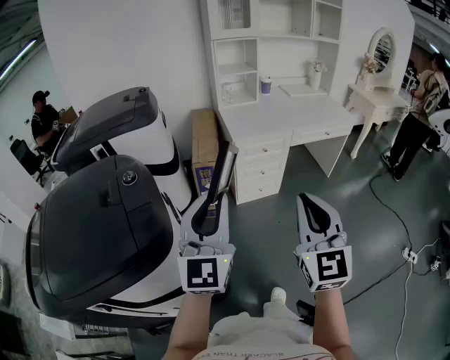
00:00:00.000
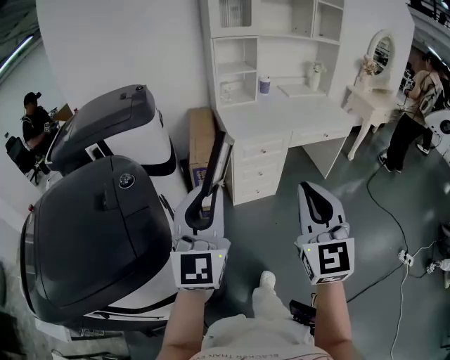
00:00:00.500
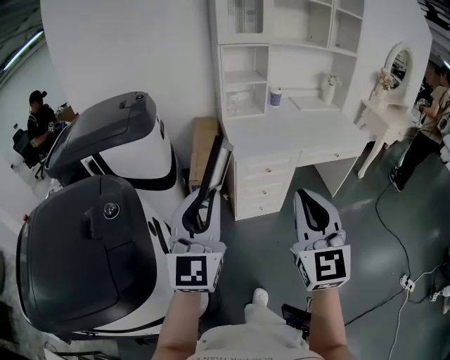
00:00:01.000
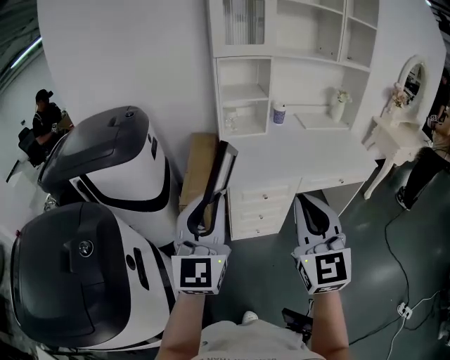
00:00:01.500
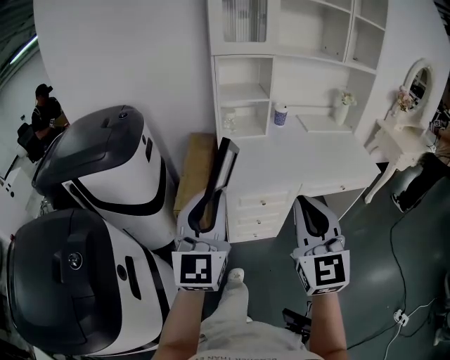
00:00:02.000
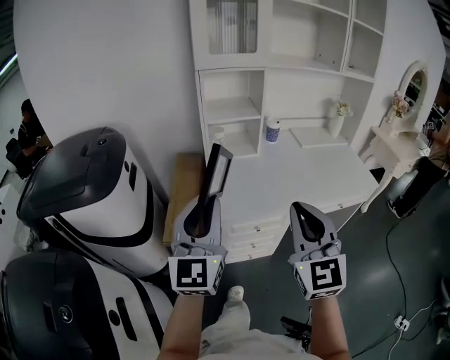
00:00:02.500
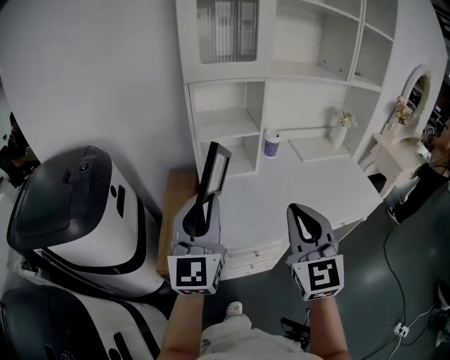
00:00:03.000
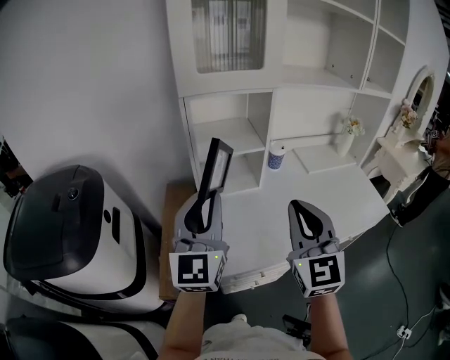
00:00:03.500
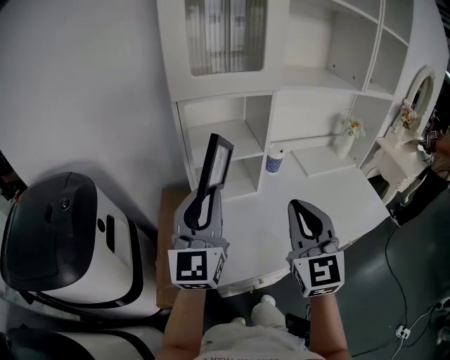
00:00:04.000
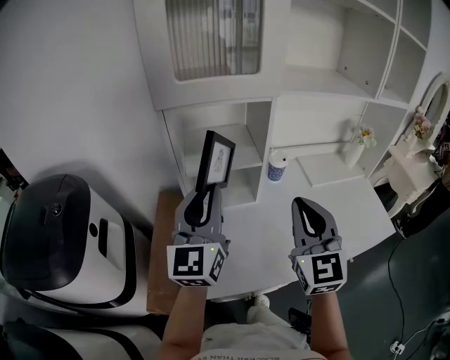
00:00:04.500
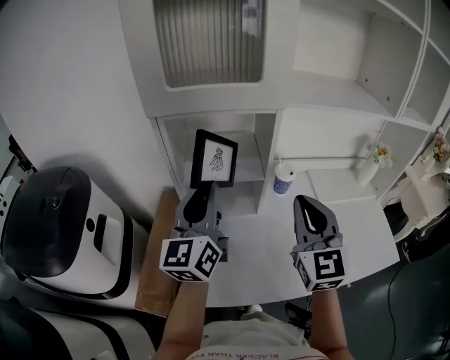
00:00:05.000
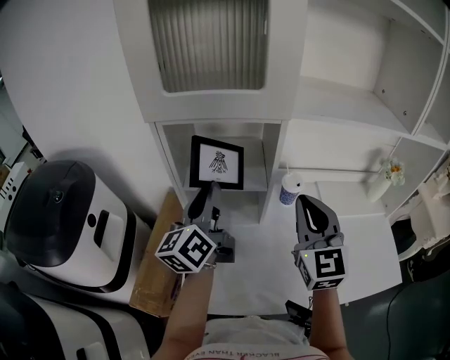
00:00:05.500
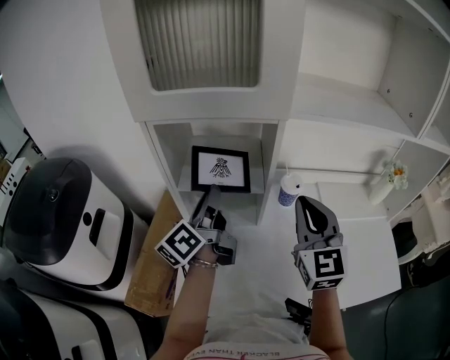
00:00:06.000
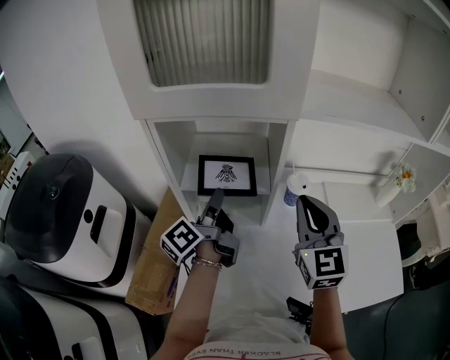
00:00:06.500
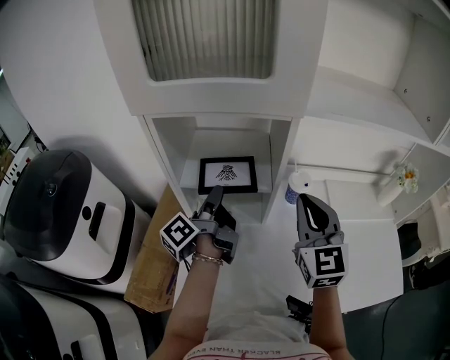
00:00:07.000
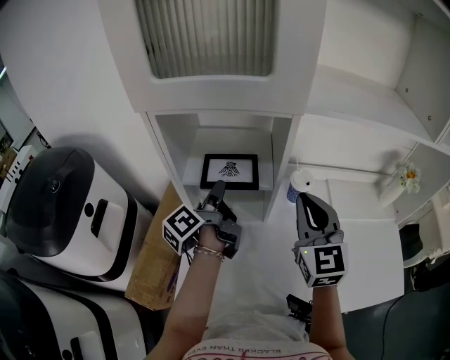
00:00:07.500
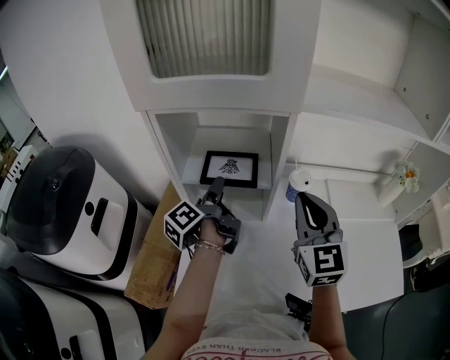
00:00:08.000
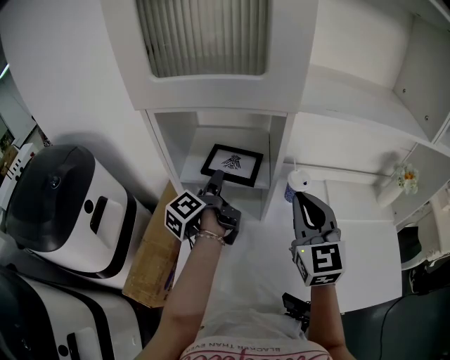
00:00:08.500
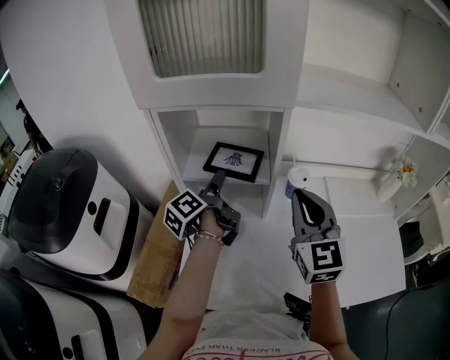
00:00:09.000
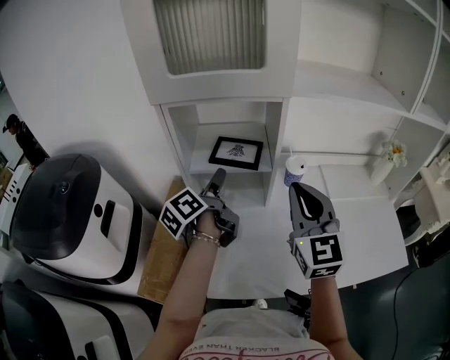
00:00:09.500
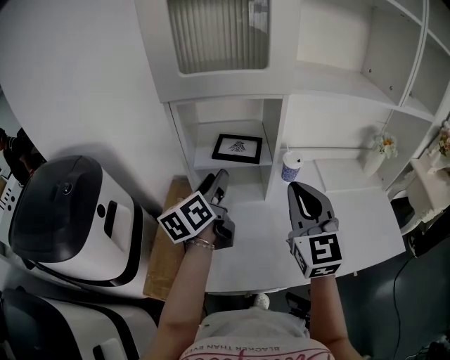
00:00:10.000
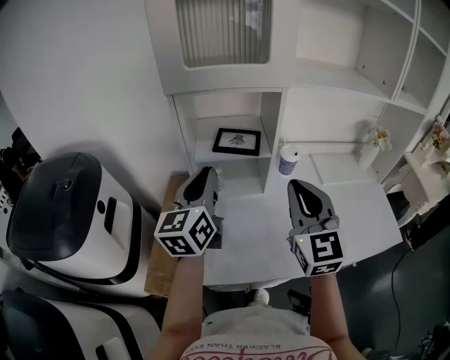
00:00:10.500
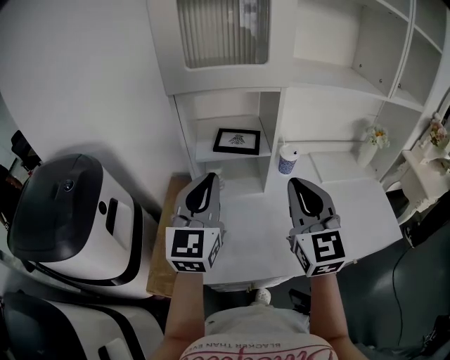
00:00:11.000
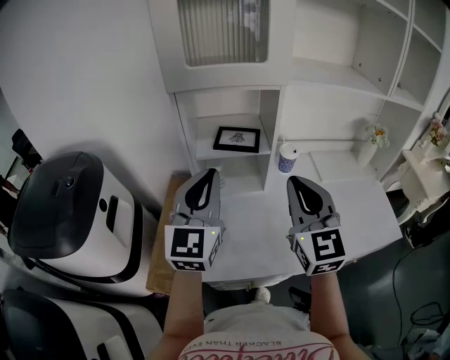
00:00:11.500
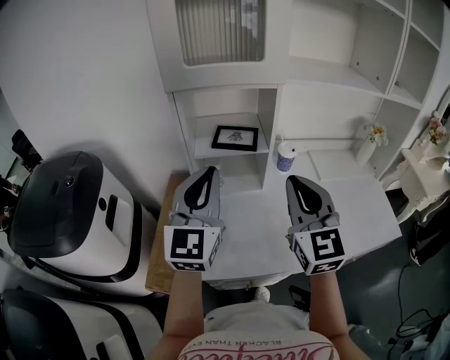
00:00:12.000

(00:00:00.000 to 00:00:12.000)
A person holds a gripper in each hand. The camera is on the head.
00:00:00.000 - 00:00:02.000: The grippers both shift forward by roughly 30 cm.
00:00:02.000 - 00:00:04.000: The grippers both shift forward by approximately 40 cm.
00:00:04.000 - 00:00:06.000: The left gripper goes approximately 20 cm forward and downward, and twists some 60 degrees counterclockwise, seen from behind, while the right gripper is displaced forward and to the right by about 25 cm.
00:00:06.000 - 00:00:08.000: The left gripper goes roughly 10 cm downward, swivels some 30 degrees, and opens its fingers.
00:00:08.000 - 00:00:10.000: The right gripper goes approximately 10 cm backward and to the left. The left gripper shifts about 10 cm backward and upward, and twists roughly 40 degrees clockwise, seen from behind.
00:00:10.000 - 00:00:12.000: The right gripper moves backward, approximately 5 cm, while the left gripper moves backward and upward, about 15 cm, twists some 50 degrees clockwise, seen from behind, and closes up.

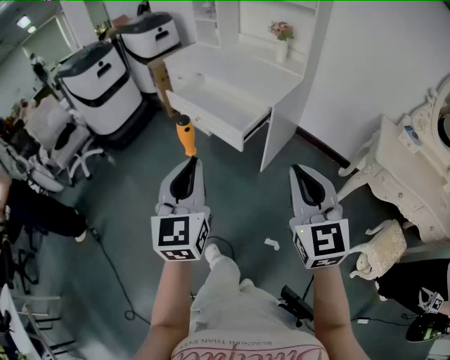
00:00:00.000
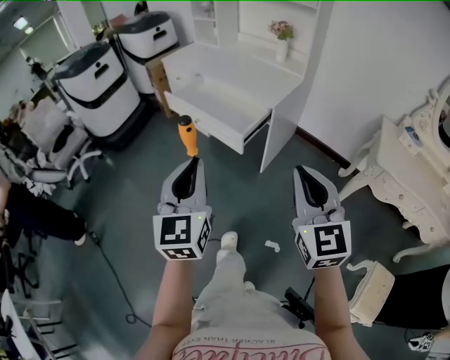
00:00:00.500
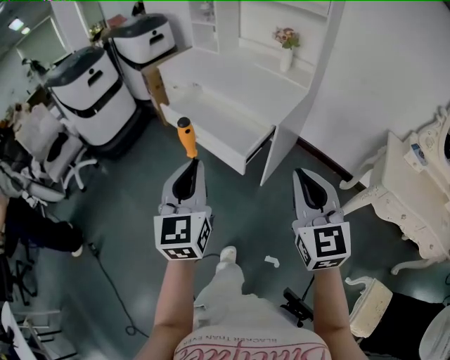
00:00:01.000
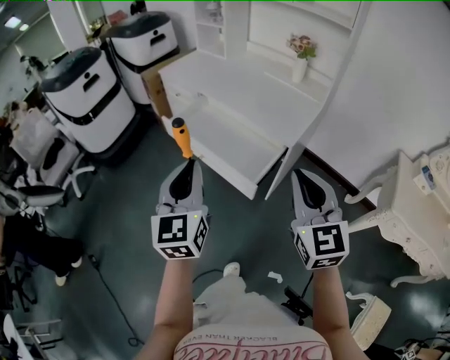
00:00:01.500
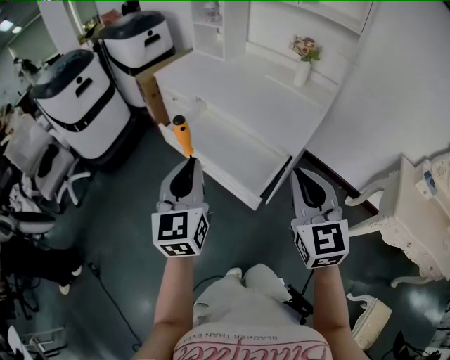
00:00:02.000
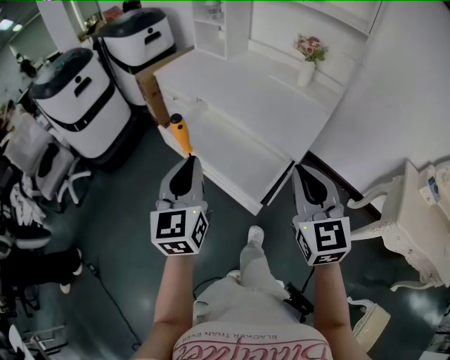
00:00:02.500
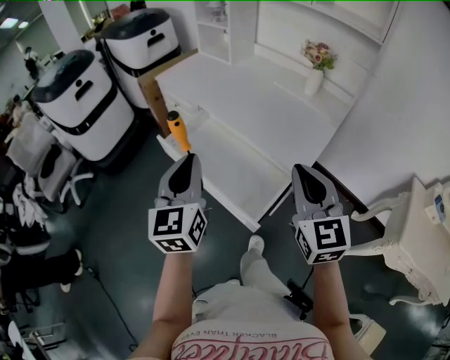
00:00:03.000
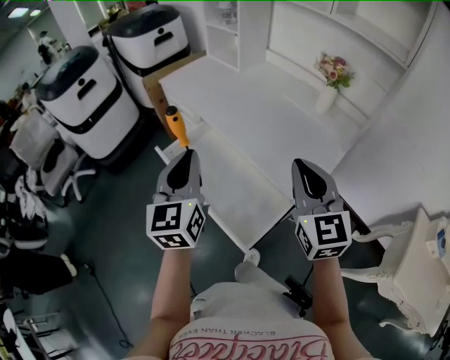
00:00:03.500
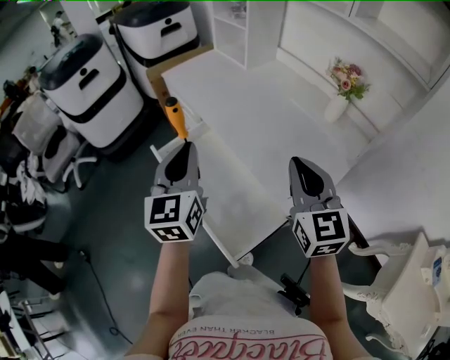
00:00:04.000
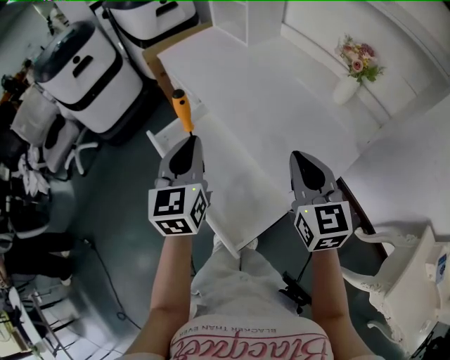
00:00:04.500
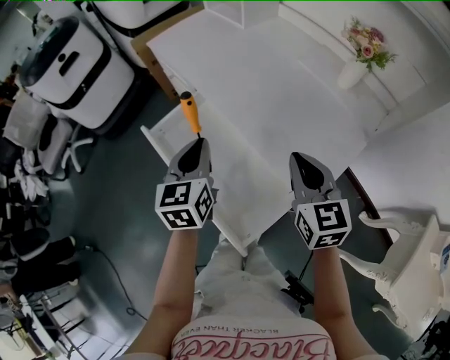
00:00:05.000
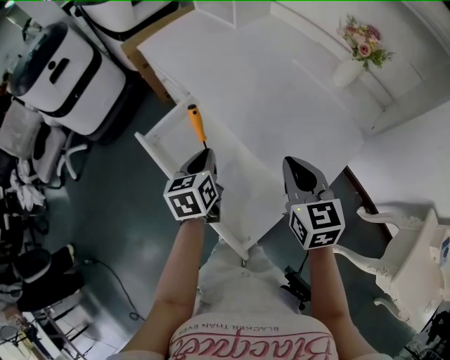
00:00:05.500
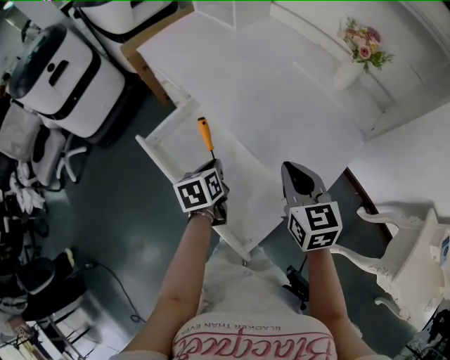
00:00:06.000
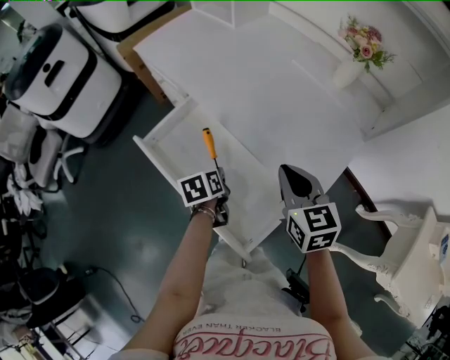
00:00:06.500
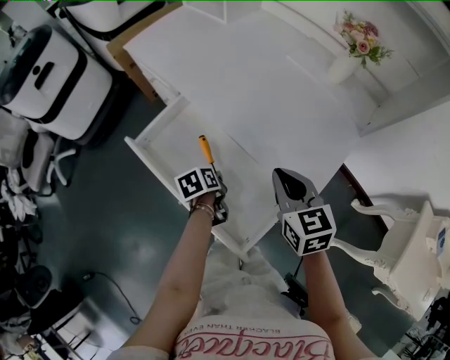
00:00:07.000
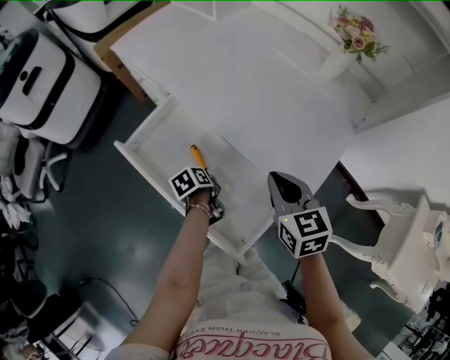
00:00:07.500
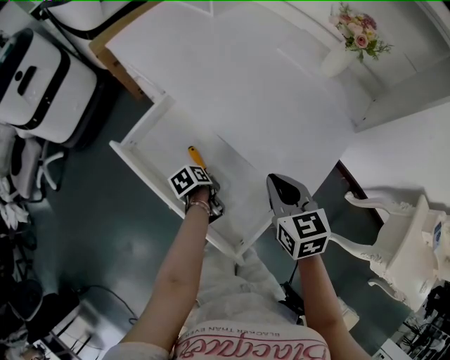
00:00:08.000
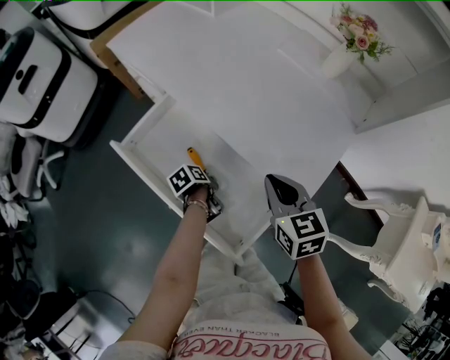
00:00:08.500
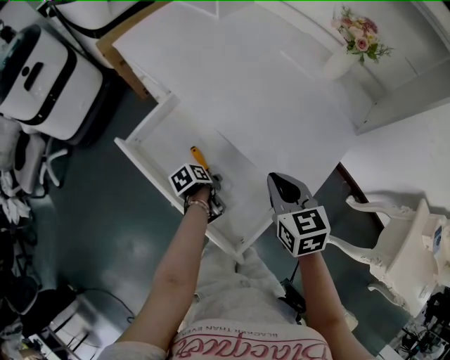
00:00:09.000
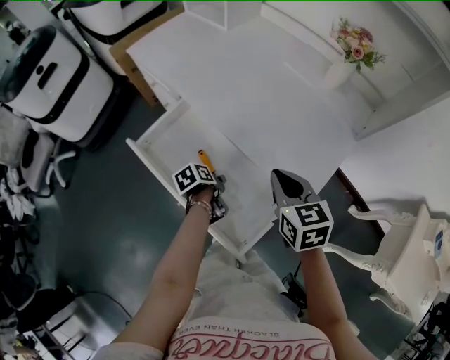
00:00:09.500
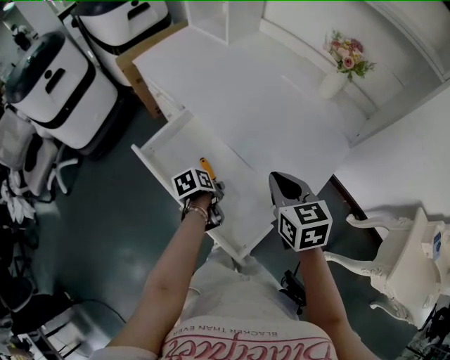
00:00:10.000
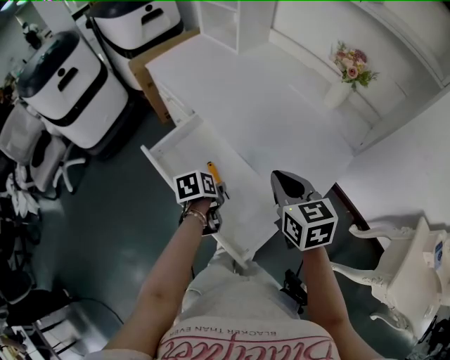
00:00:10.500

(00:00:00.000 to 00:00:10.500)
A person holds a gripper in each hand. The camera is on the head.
00:00:00.000 - 00:00:02.000: Both grippers move forward, approximately 35 cm.
00:00:02.000 - 00:00:04.000: Both grippers move forward, roughly 30 cm.
00:00:04.000 - 00:00:06.500: The right gripper shifts approximately 15 cm downward, and rotates approximately 20 degrees. The left gripper moves downward, roughly 30 cm, and points its fingers some 50 degrees further downward.
00:00:06.500 - 00:00:08.500: The left gripper moves downward, roughly 10 cm, and changes its angle by some 30 degrees.
00:00:08.500 - 00:00:10.500: The right gripper heads upward, covering about 10 cm. Meanwhile the left gripper shifts approximately 15 cm upward, turns by about 20 degrees, and opens up.

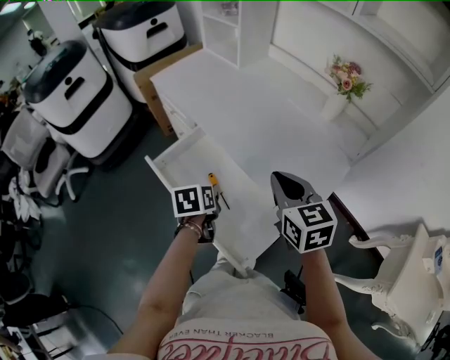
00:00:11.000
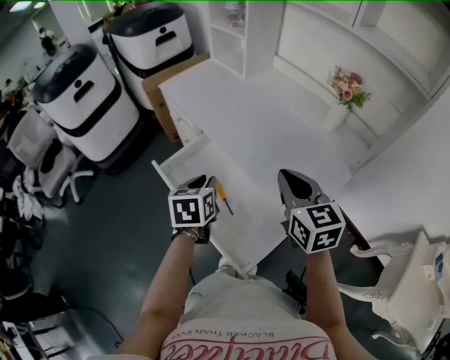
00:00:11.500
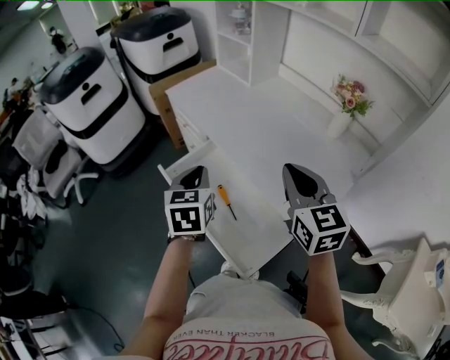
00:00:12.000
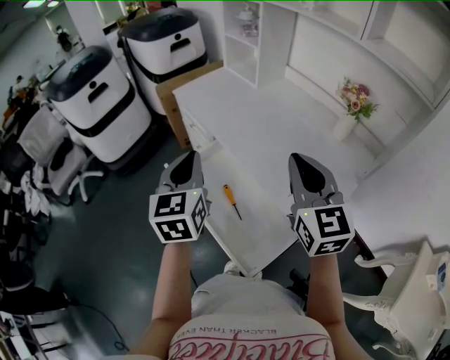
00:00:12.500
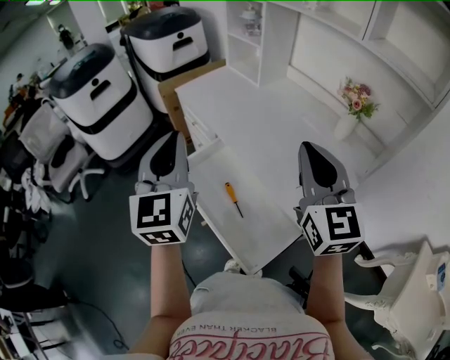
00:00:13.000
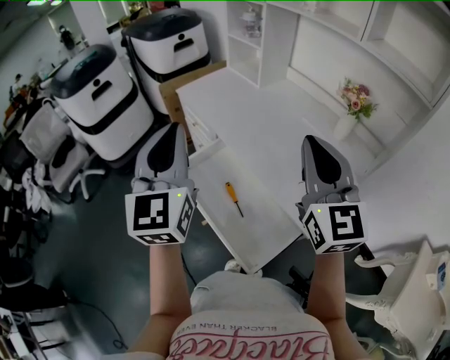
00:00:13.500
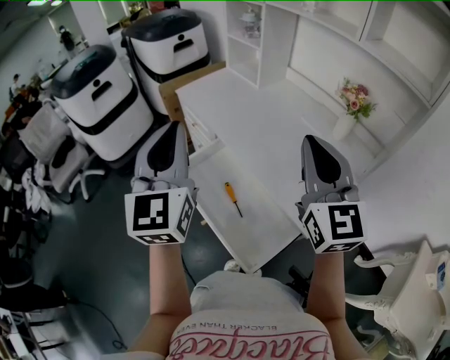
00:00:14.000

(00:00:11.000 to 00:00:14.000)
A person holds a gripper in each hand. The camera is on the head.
00:00:11.000 - 00:00:12.500: The left gripper moves upward, roughly 25 cm, tips its fingers upward by approximately 40 degrees, and closes. Meanwhile the right gripper is displaced upward by approximately 15 cm, and rotates some 20 degrees.
00:00:12.500 - 00:00:14.000: The left gripper travels upward by roughly 10 cm, and rotates roughly 20 degrees; the right gripper heads upward, covering some 5 cm.

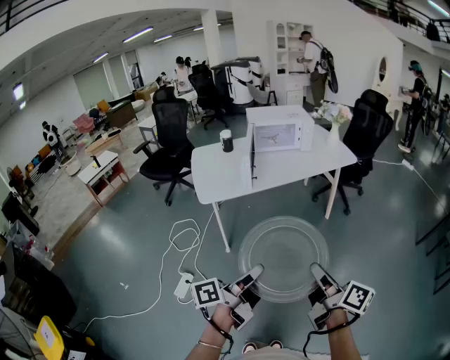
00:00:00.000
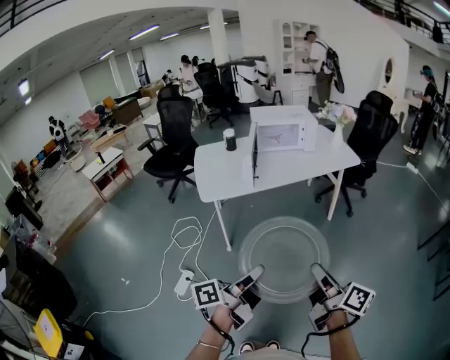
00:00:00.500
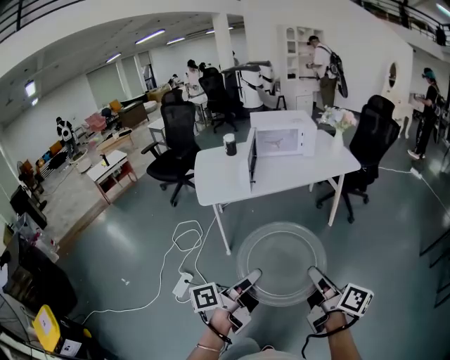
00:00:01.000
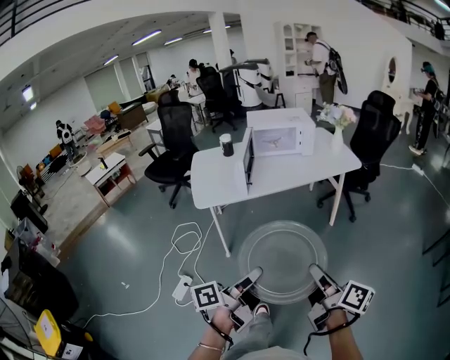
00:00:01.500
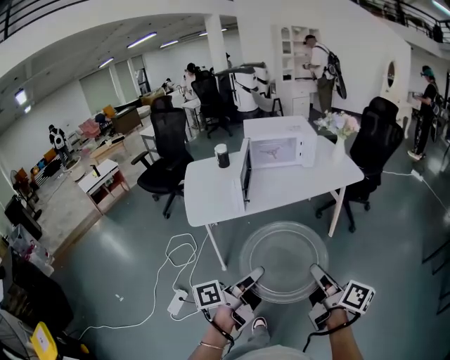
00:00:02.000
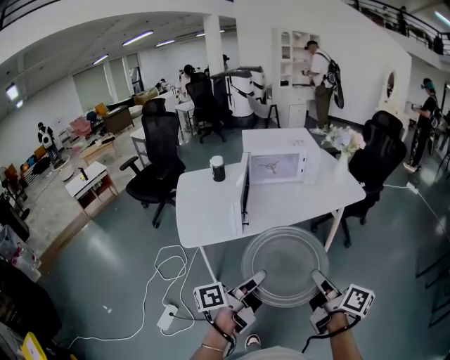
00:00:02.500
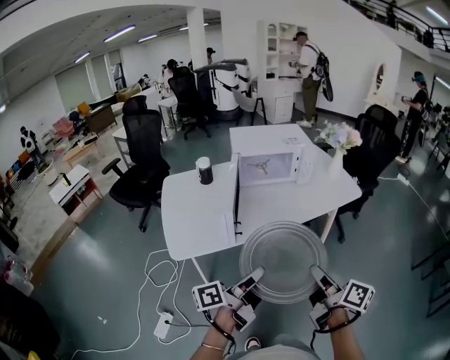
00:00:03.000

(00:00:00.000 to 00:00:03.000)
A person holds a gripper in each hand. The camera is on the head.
00:00:00.000 - 00:00:01.500: The right gripper is displaced forward by roughly 5 cm. Meanwhile the left gripper is displaced to the right by roughly 5 cm.
00:00:01.500 - 00:00:03.000: The grippers both shift forward by about 30 cm.
